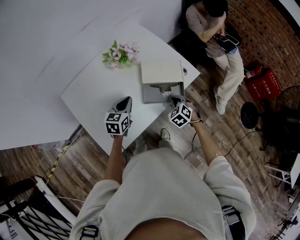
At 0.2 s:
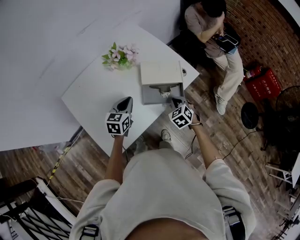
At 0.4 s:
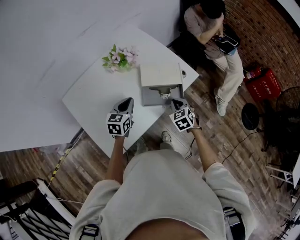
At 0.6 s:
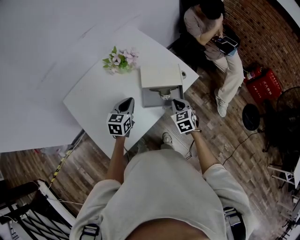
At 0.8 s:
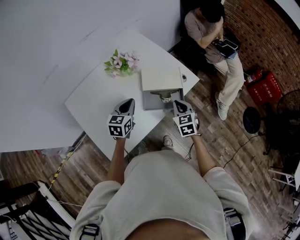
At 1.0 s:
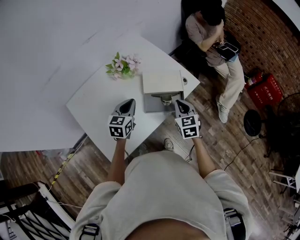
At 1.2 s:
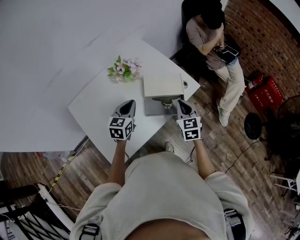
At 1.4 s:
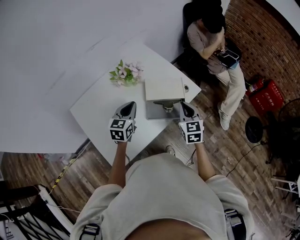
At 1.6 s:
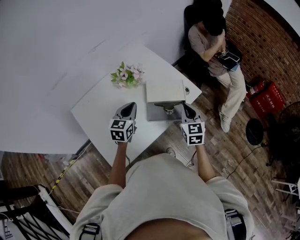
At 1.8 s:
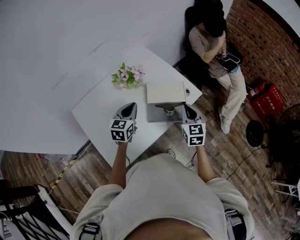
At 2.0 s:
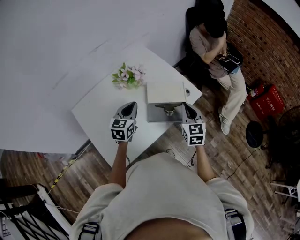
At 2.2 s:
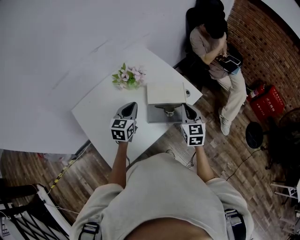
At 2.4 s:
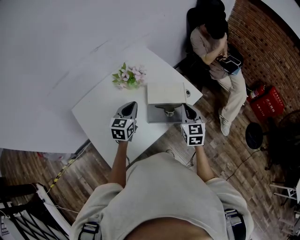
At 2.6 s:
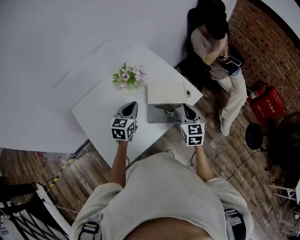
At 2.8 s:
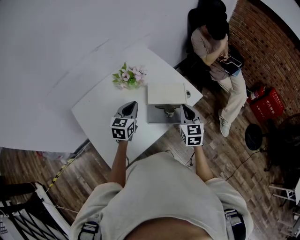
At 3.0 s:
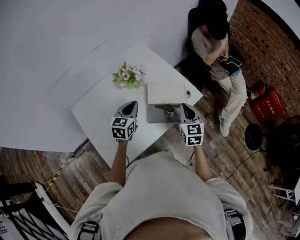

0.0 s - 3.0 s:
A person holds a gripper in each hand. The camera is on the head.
0.0 s - 1.6 s: The right gripper is displaced upward by about 15 cm, and points its fingers roughly 30 degrees further upward, while the left gripper moves upward, some 10 cm.
1.6 s - 3.0 s: The grippers stay close to where they were, moving slightly.

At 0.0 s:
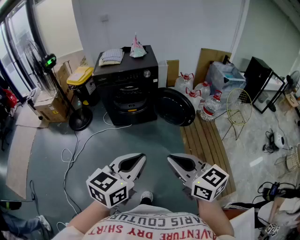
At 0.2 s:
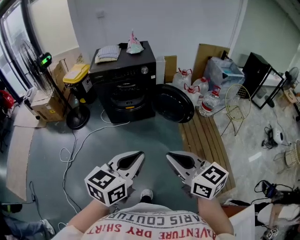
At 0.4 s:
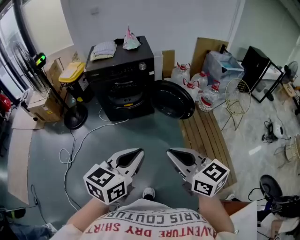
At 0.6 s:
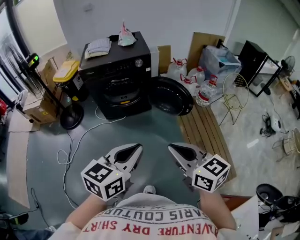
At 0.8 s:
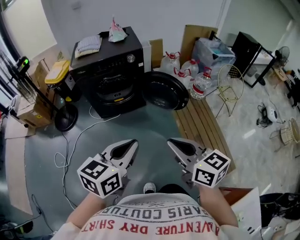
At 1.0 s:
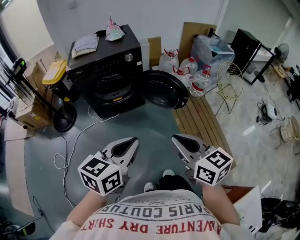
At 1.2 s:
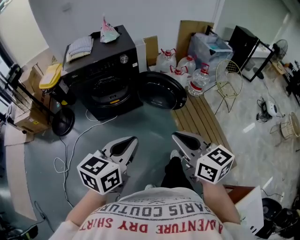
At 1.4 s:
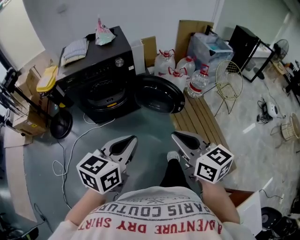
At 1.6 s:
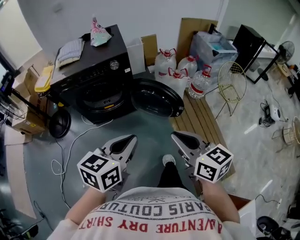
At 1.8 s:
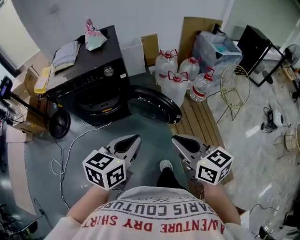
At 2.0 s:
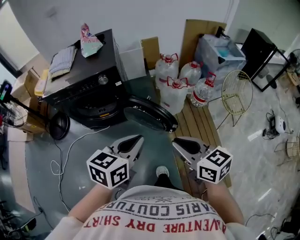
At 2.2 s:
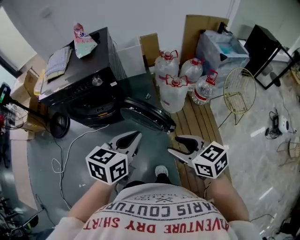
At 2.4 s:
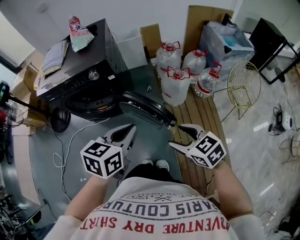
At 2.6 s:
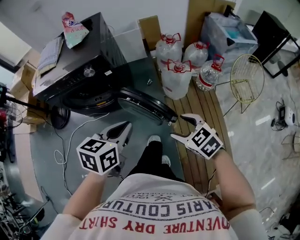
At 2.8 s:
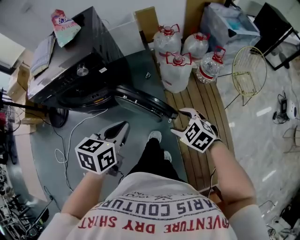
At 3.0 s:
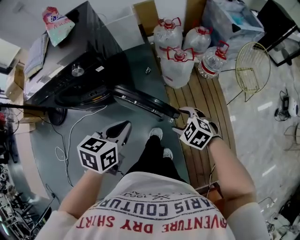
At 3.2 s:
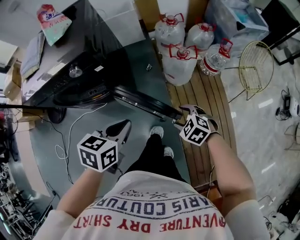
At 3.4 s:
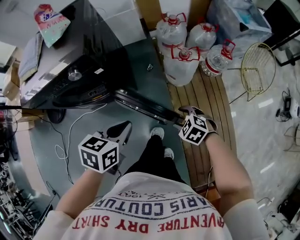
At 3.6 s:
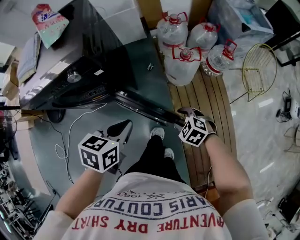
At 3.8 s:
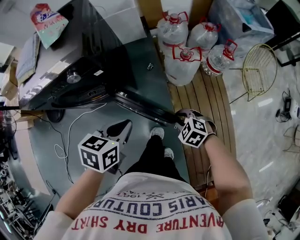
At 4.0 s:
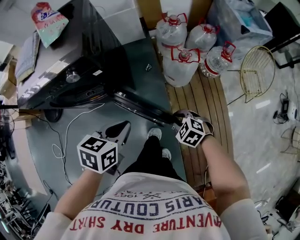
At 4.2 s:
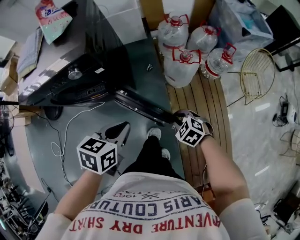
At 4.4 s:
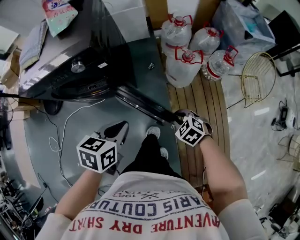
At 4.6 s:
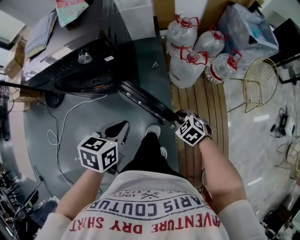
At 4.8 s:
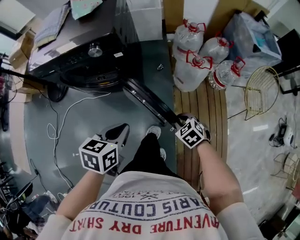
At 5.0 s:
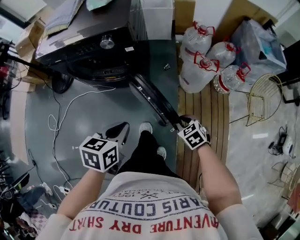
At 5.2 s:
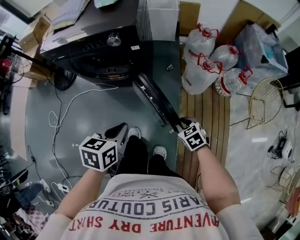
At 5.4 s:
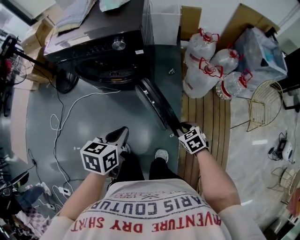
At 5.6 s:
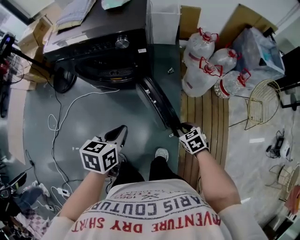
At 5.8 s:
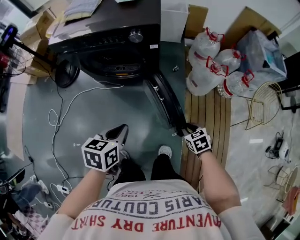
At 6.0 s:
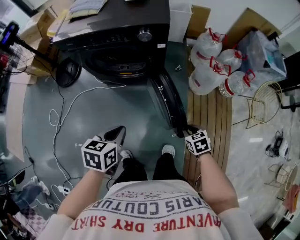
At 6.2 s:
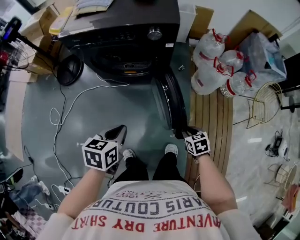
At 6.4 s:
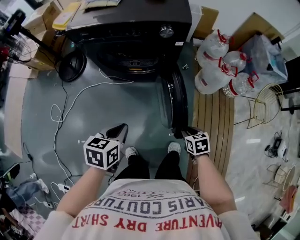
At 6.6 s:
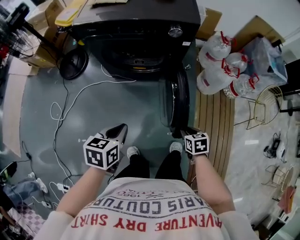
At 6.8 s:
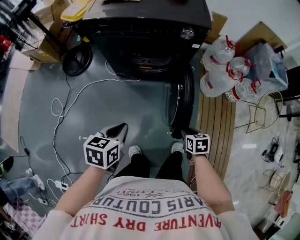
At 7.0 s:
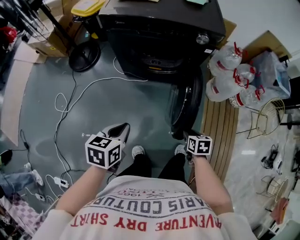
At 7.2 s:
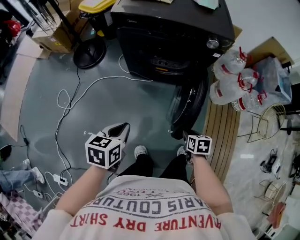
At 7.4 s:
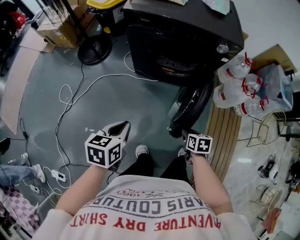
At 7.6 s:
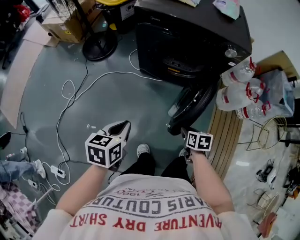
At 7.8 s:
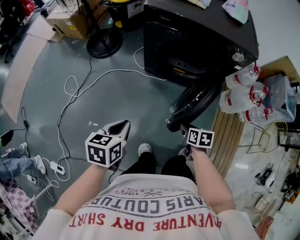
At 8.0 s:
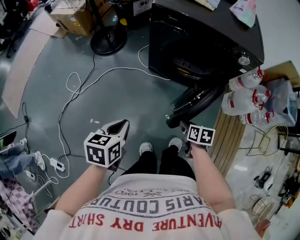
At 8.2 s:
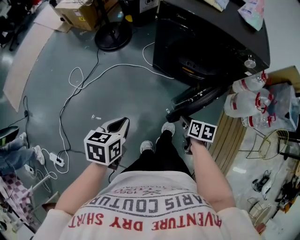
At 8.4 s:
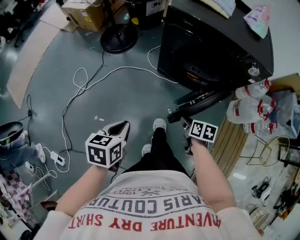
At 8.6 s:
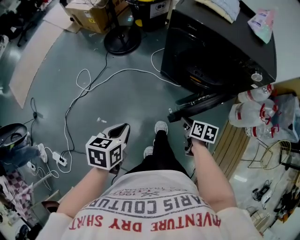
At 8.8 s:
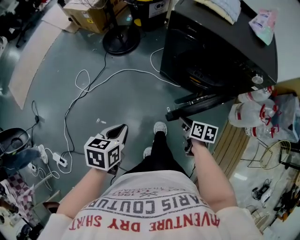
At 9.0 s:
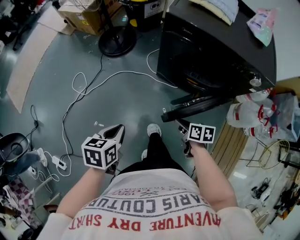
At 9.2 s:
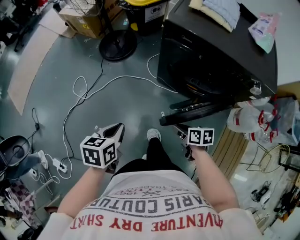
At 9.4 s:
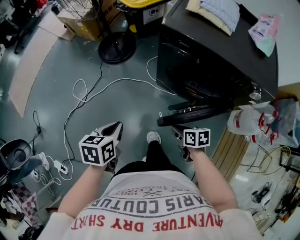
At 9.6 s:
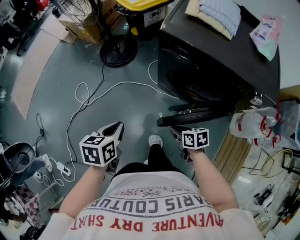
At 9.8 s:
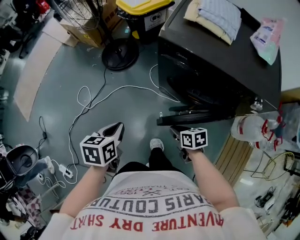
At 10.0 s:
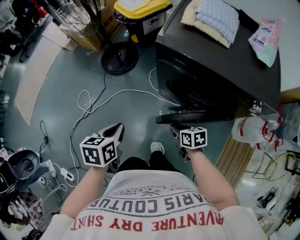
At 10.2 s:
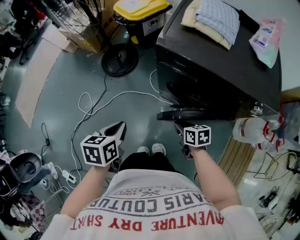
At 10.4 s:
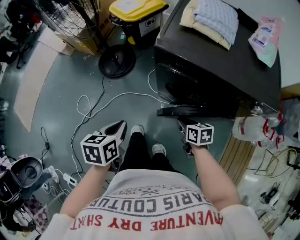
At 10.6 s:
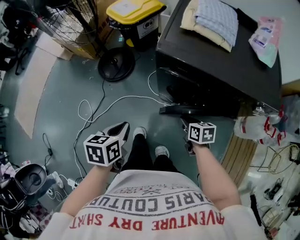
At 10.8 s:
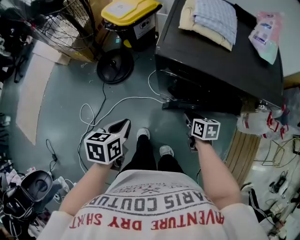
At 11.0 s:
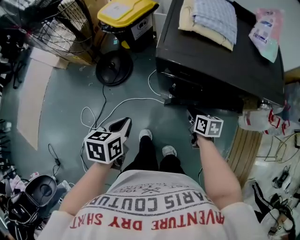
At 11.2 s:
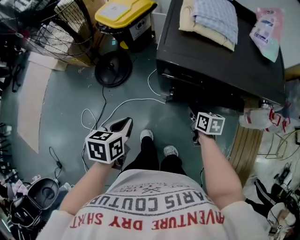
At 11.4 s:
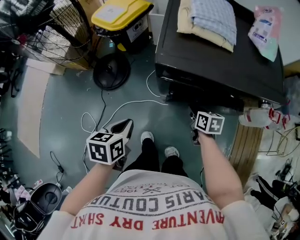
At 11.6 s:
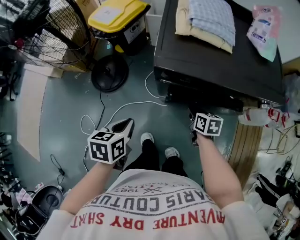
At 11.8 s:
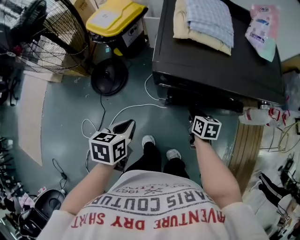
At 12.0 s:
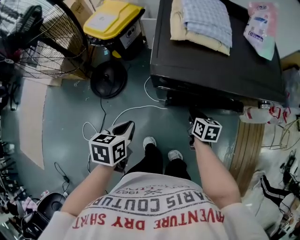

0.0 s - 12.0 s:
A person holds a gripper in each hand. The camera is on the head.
0.0 s - 1.6 s: Both grippers move forward, about 25 cm.
1.6 s - 3.0 s: The left gripper shifts about 30 cm forward, downward and to the right, and changes its angle by roughly 20 degrees. The right gripper goes roughly 40 cm downward, forward and to the right, angles its fingers downward, by roughly 40 degrees, and opens.
3.0 s - 4.4 s: The left gripper moves about 5 cm, while the right gripper moves downward and forward, some 10 cm, and closes.
4.4 s - 6.0 s: The left gripper travels to the left and backward by some 25 cm; the right gripper moves to the left and backward, roughly 15 cm, and changes its angle by approximately 20 degrees.
6.0 s - 7.6 s: Both grippers travel together to the left, about 30 cm.
7.6 s - 9.0 s: The right gripper is displaced forward and to the left by about 20 cm, and swivels some 20 degrees; the left gripper heads to the left, covering about 10 cm.
9.0 s - 10.4 s: The right gripper goes roughly 15 cm forward. The left gripper moves forward and to the right, about 20 cm.
10.4 s - 12.0 s: The left gripper changes place by some 15 cm, while the right gripper ends up some 10 cm from where it was, and turns by roughly 30 degrees.

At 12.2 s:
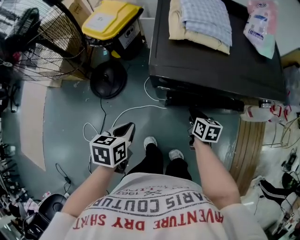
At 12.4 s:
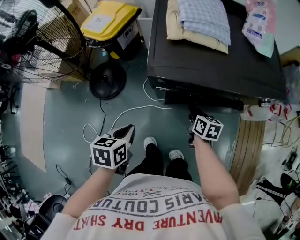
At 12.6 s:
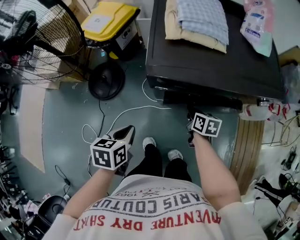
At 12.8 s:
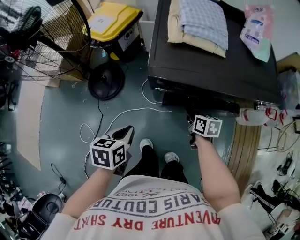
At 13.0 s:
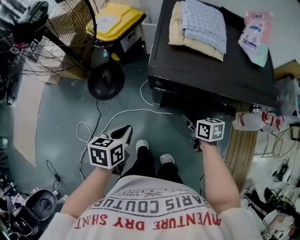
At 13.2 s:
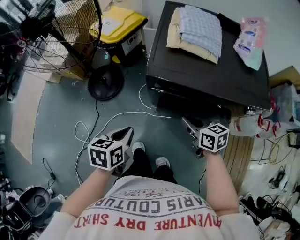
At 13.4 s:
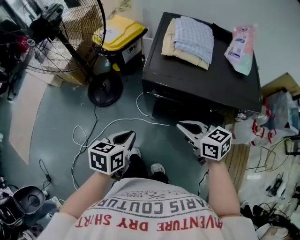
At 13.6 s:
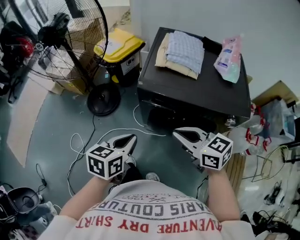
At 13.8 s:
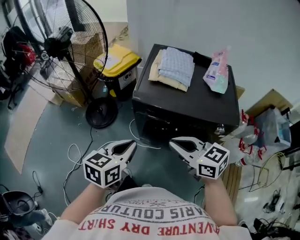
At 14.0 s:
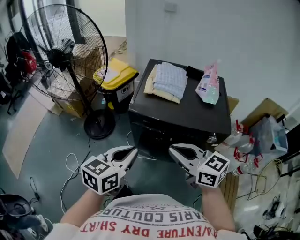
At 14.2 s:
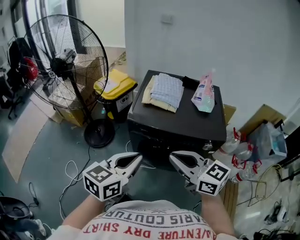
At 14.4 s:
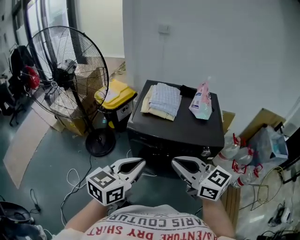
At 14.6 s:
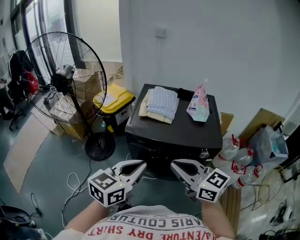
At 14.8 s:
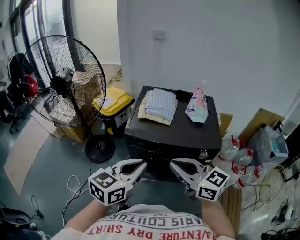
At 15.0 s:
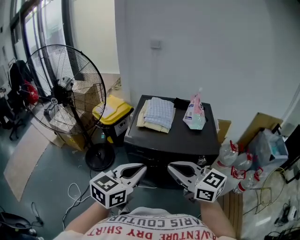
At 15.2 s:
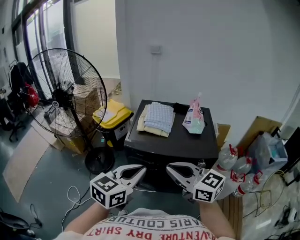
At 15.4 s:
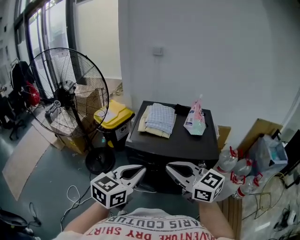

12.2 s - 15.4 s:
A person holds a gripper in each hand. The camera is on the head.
12.2 s - 13.8 s: The left gripper heads upward, to the right and backward, covering about 25 cm, and changes its angle by approximately 30 degrees; the right gripper travels upward by some 30 cm, and turns by about 60 degrees.
13.8 s - 15.4 s: The right gripper travels upward by approximately 15 cm. Meanwhile the left gripper shifts about 15 cm upward and to the right, and changes its angle by approximately 20 degrees.
